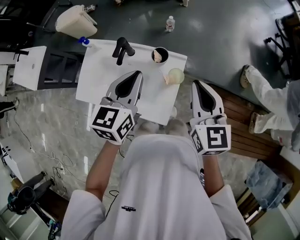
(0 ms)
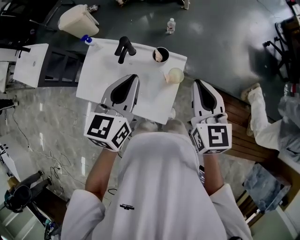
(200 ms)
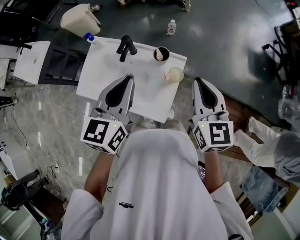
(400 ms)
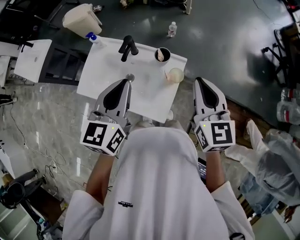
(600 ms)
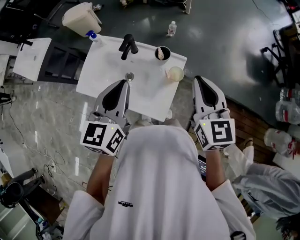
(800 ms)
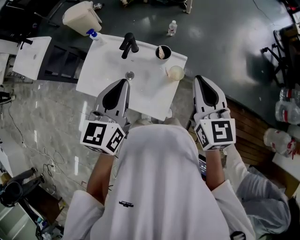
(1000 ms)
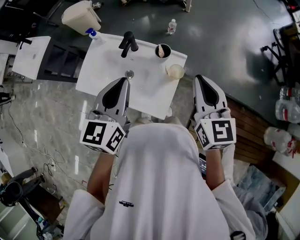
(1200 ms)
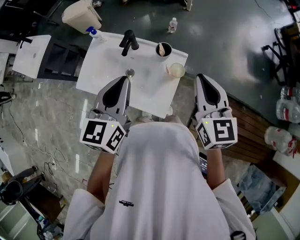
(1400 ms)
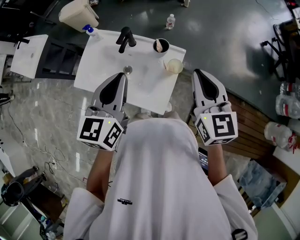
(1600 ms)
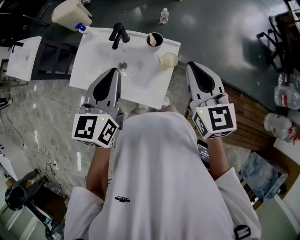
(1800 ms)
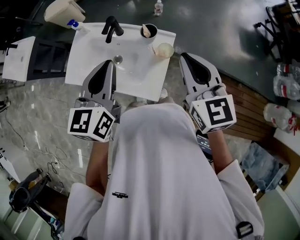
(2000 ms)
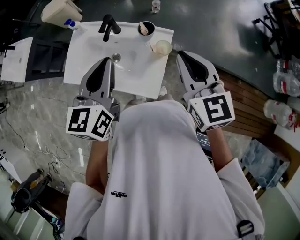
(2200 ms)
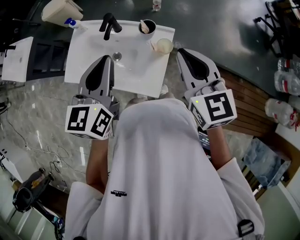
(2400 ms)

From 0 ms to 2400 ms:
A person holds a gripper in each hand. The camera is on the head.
From 0 ms to 1200 ms: The left gripper is displaced backward and upward by roughly 10 cm.
From 1200 ms to 2400 ms: There are only small adjustments of the grippers.

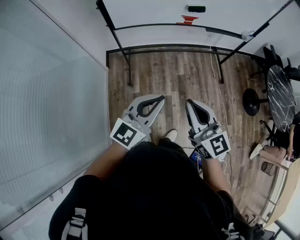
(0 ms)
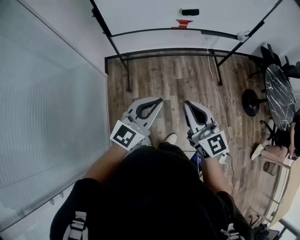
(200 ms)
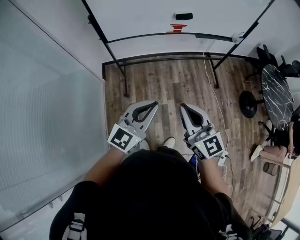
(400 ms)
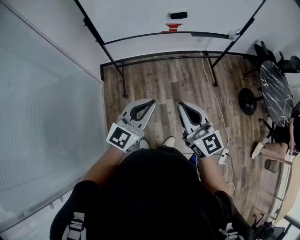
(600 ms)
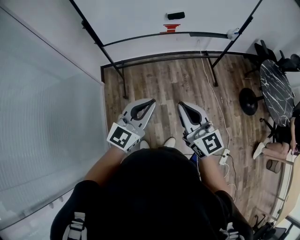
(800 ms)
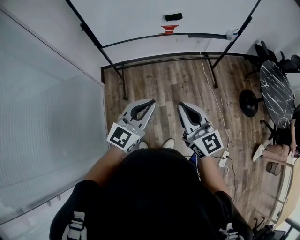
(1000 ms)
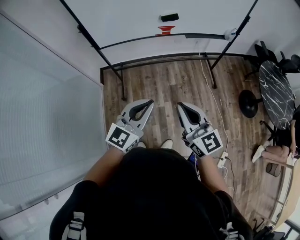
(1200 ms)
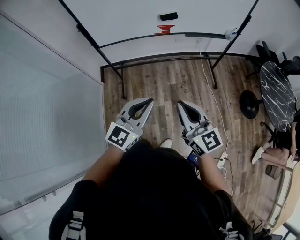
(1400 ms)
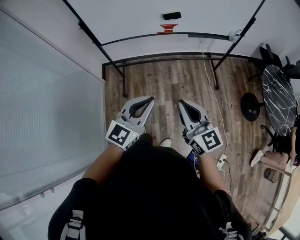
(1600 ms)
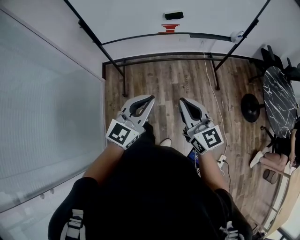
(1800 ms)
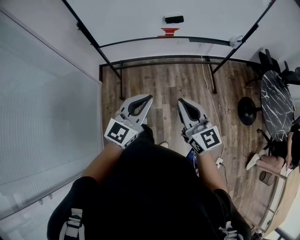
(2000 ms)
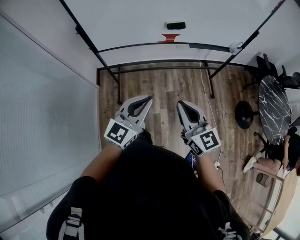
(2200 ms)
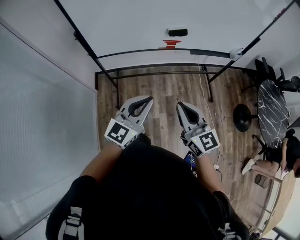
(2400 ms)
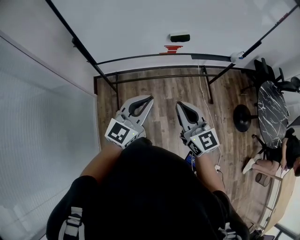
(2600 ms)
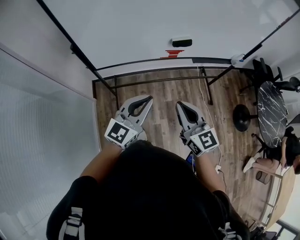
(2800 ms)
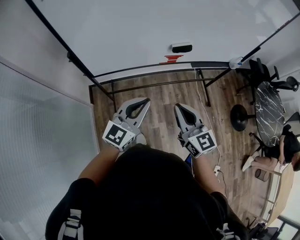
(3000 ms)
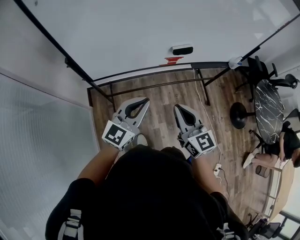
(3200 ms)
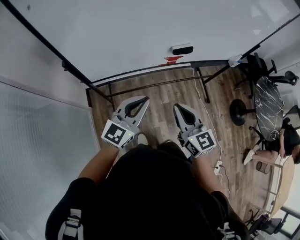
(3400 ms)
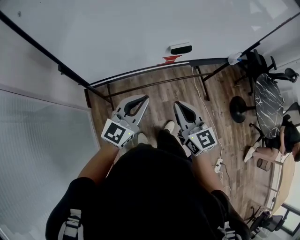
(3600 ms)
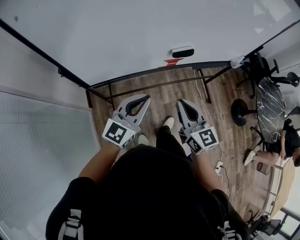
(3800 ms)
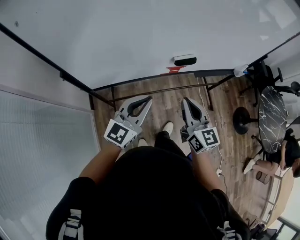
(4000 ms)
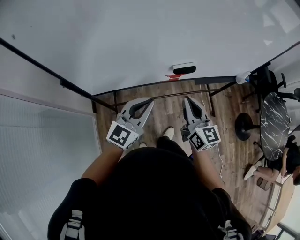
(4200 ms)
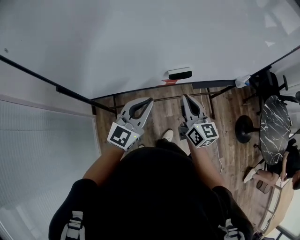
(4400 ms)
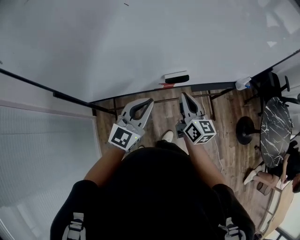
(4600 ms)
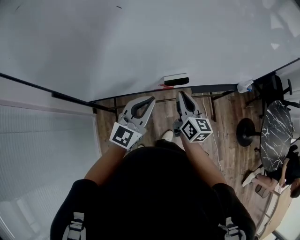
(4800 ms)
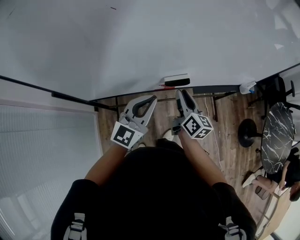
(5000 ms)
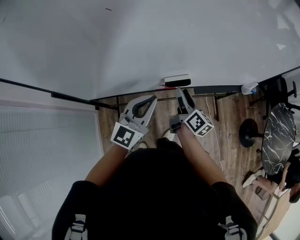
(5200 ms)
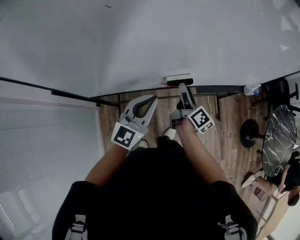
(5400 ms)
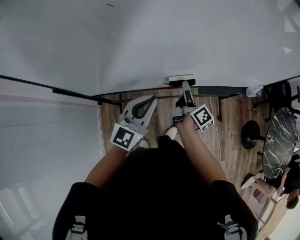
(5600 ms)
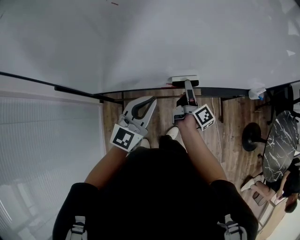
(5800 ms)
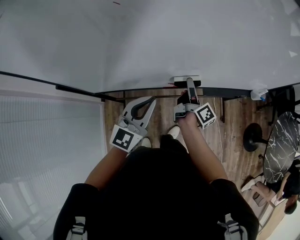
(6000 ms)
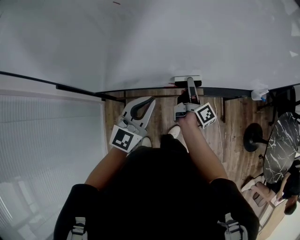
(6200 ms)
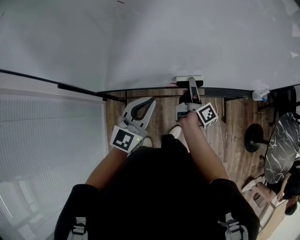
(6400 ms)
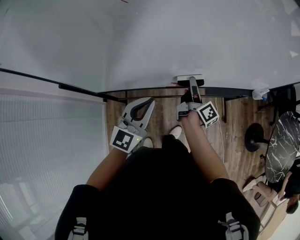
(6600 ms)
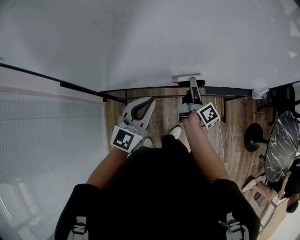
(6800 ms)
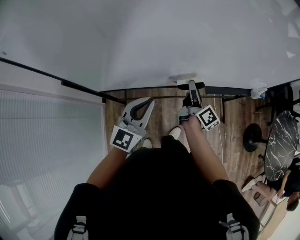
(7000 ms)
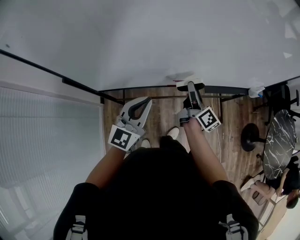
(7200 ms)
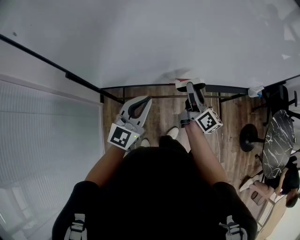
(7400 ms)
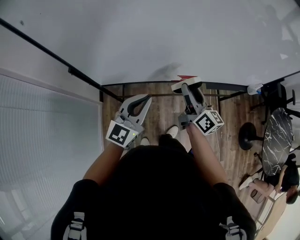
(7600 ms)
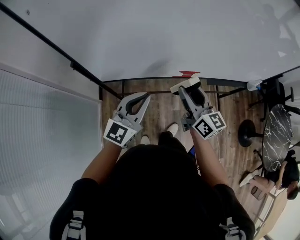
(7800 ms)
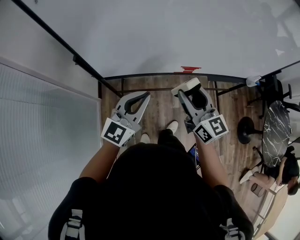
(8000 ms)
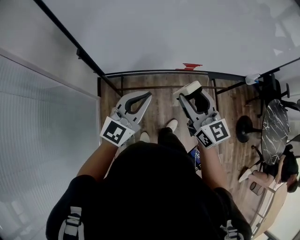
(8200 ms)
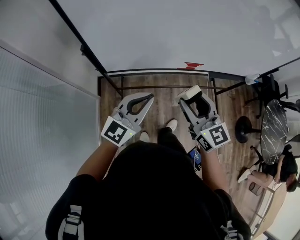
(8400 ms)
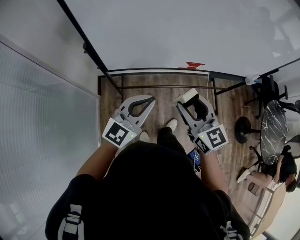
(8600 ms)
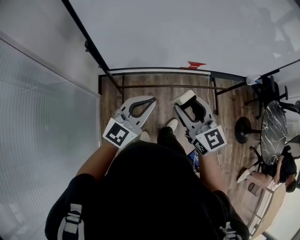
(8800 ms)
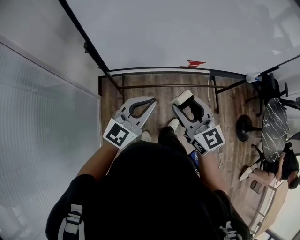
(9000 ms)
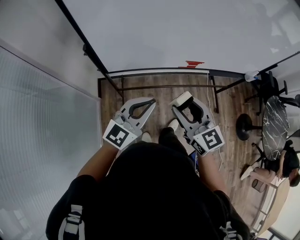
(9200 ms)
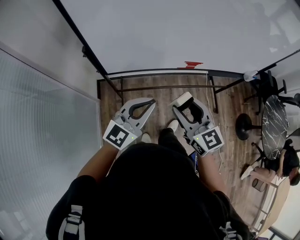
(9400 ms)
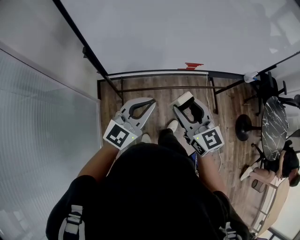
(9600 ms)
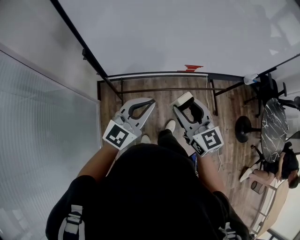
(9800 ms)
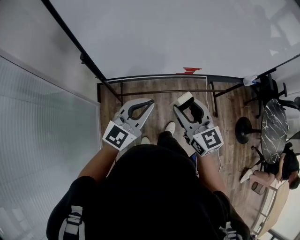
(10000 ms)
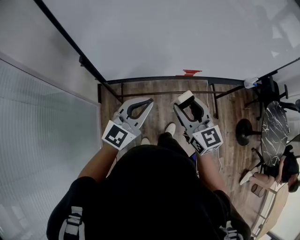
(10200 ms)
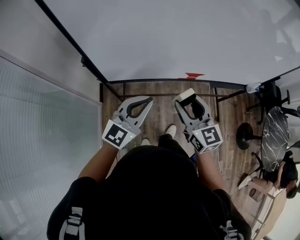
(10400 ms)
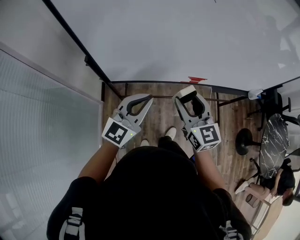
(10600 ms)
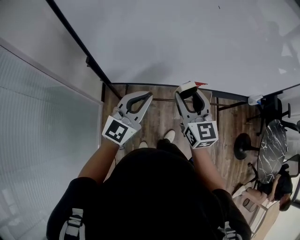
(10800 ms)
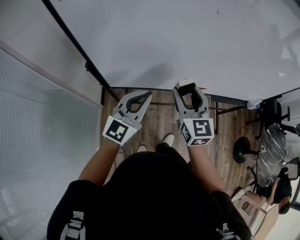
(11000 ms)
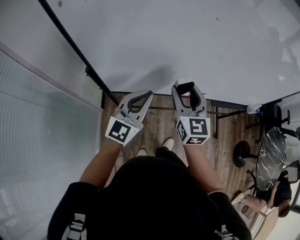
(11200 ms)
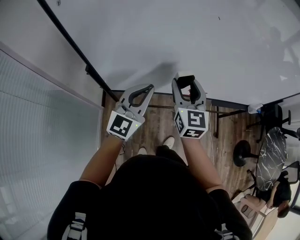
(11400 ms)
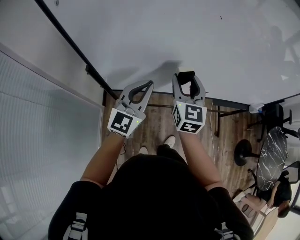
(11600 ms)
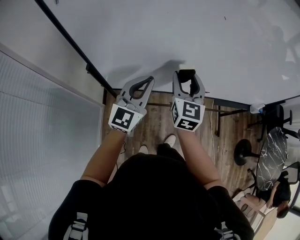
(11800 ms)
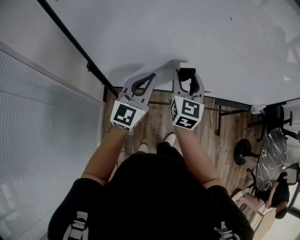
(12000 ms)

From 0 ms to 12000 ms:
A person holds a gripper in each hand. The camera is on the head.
From 0 ms to 1600 ms: The two grippers go roughly 15 cm to the right.
From 1600 ms to 3000 ms: The two grippers go some 30 cm forward and to the left.
From 3000 ms to 4400 ms: The grippers both shift forward by about 20 cm.
From 4400 ms to 6000 ms: The right gripper shifts about 20 cm forward and downward, rotates around the line of its fingers by about 60 degrees, clockwise from behind, and opens its fingers; the left gripper shifts approximately 5 cm forward.
From 6000 ms to 7600 ms: The right gripper is displaced backward, upward and to the left by about 20 cm, and changes its angle by some 40 degrees. The left gripper travels backward and to the left by about 10 cm.
From 7600 ms to 9000 ms: The left gripper heads backward and to the left, covering some 15 cm, while the right gripper travels backward and to the left by some 25 cm, and changes its angle by roughly 40 degrees.
From 9000 ms to 10400 ms: Both grippers travel together forward, approximately 10 cm.
From 10400 ms to 12000 ms: The two grippers go roughly 15 cm forward. The right gripper swivels about 20 degrees.

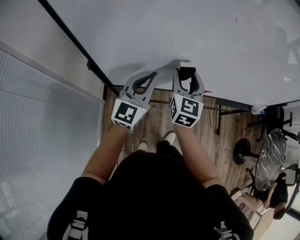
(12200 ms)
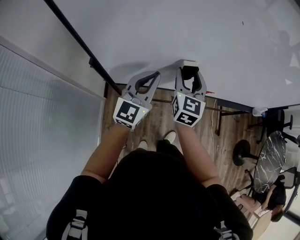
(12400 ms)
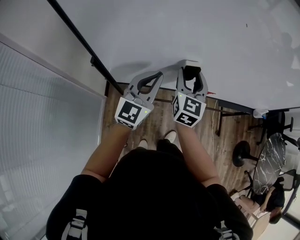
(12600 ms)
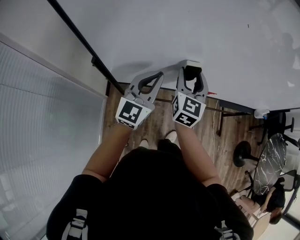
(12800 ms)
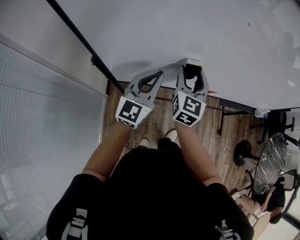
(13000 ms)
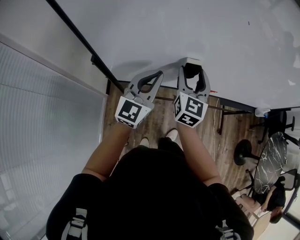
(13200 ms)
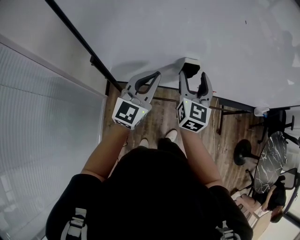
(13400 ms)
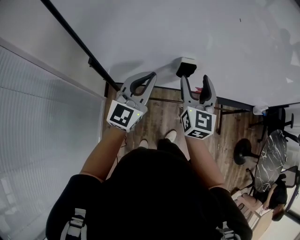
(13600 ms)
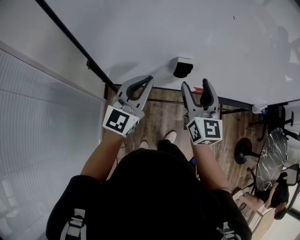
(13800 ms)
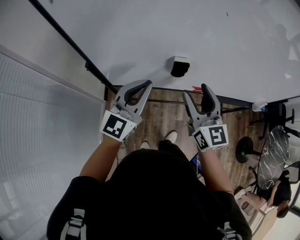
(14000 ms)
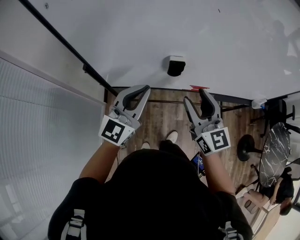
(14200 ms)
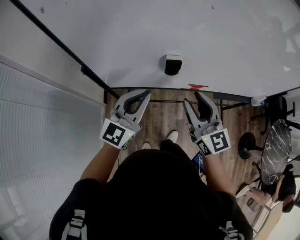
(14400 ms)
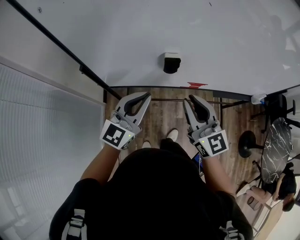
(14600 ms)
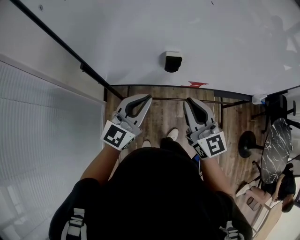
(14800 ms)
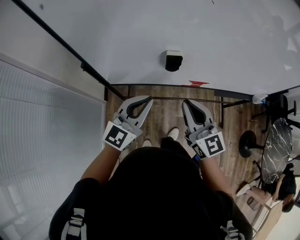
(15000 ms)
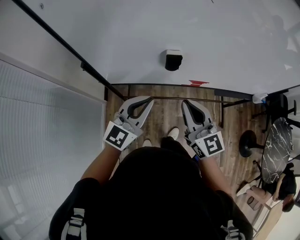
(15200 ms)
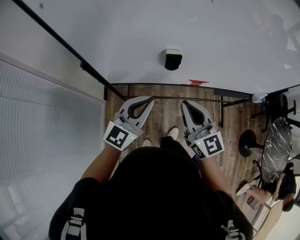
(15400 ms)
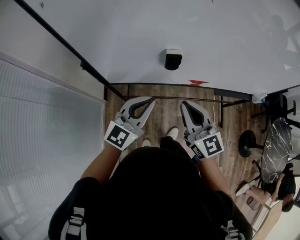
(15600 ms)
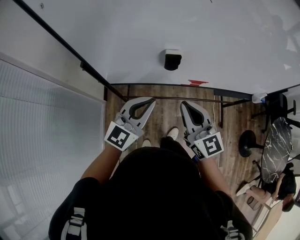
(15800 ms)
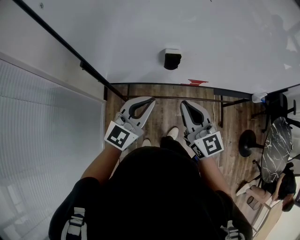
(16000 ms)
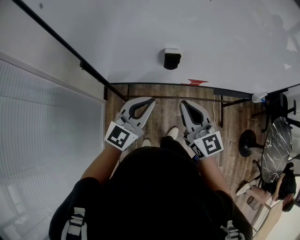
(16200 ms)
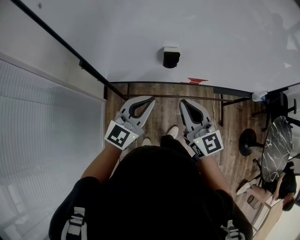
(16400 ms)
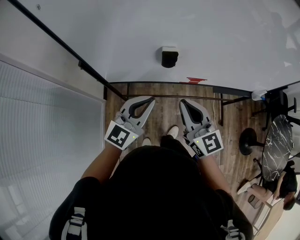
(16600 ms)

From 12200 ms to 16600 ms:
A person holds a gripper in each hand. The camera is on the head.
From 12200 ms to 13600 ms: The grippers move only a little.
From 13600 ms to 15200 ms: Both grippers travel together backward, approximately 10 cm. The right gripper changes its angle by about 20 degrees, and closes up.
From 15200 ms to 16600 ms: The grippers stay close to where they were, moving slightly.

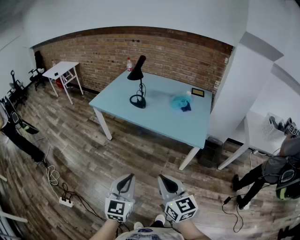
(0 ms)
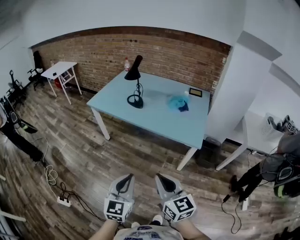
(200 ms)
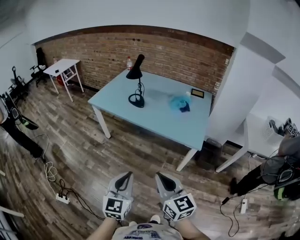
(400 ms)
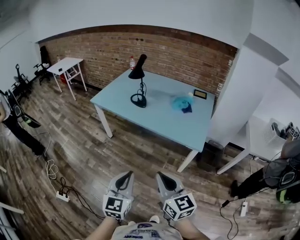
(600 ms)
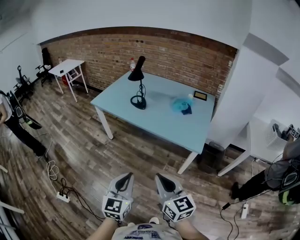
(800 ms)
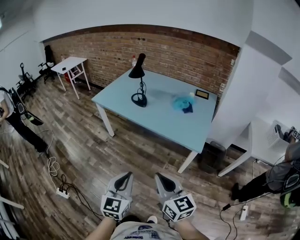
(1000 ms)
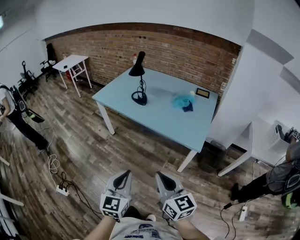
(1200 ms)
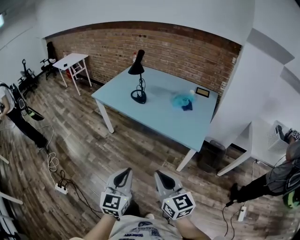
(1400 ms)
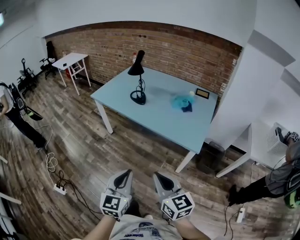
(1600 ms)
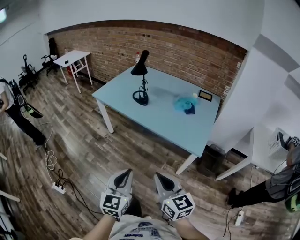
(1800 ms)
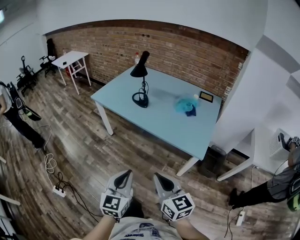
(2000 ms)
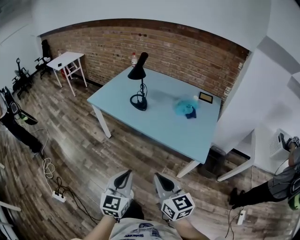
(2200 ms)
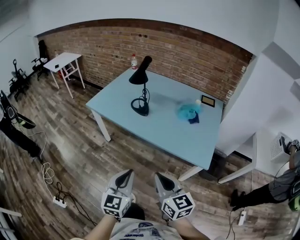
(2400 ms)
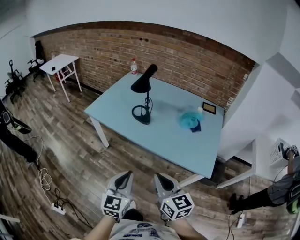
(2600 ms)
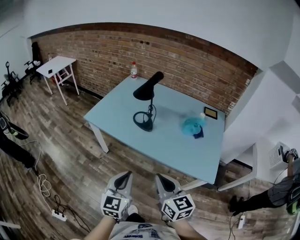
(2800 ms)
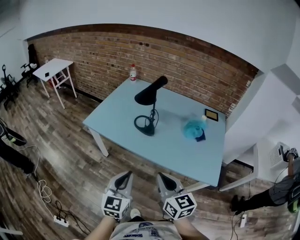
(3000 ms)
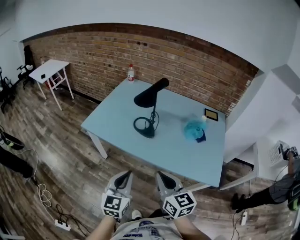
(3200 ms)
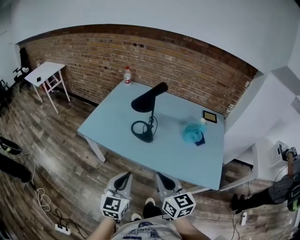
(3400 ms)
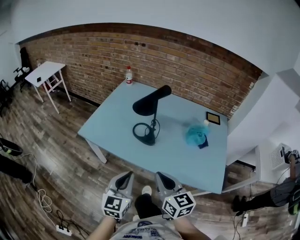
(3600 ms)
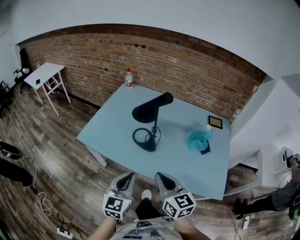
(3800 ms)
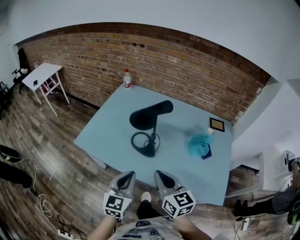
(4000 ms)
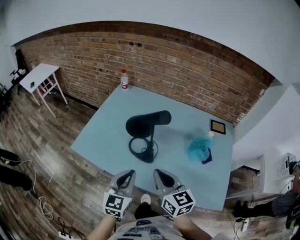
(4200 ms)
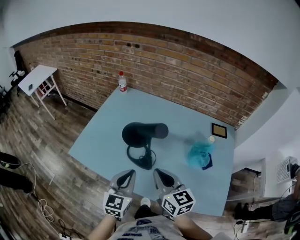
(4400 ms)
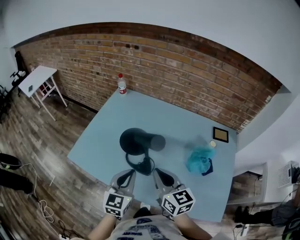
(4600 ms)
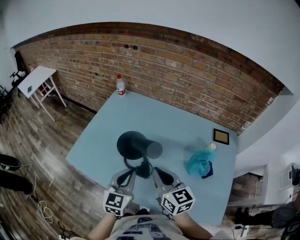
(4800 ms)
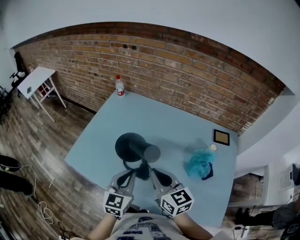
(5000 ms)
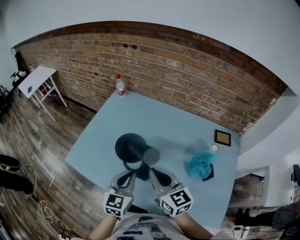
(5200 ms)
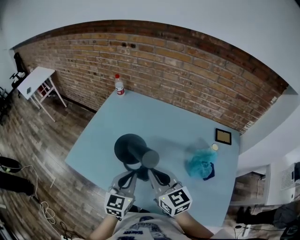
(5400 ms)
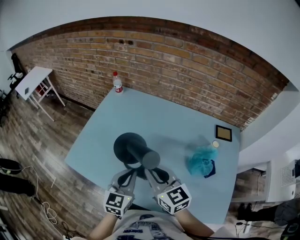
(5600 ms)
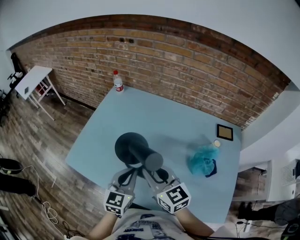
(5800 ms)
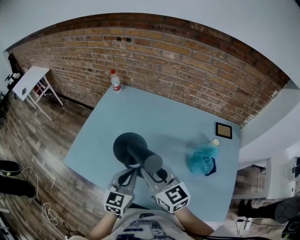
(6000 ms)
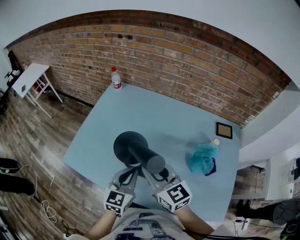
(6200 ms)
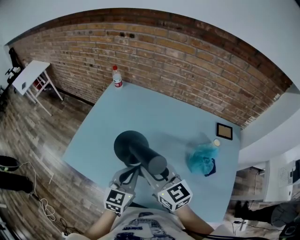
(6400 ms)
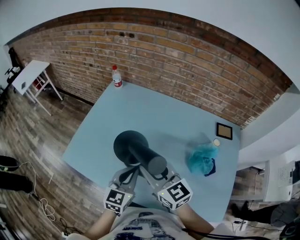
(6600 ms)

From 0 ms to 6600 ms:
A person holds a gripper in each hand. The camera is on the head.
From 0 ms to 1600 ms: The two grippers go some 10 cm to the right.
From 1600 ms to 3200 ms: Both grippers move forward and to the left, about 40 cm.
From 3200 ms to 5000 ms: The grippers both shift forward by approximately 35 cm.
From 5000 ms to 6600 ms: The right gripper changes place by some 5 cm, and opens up.
